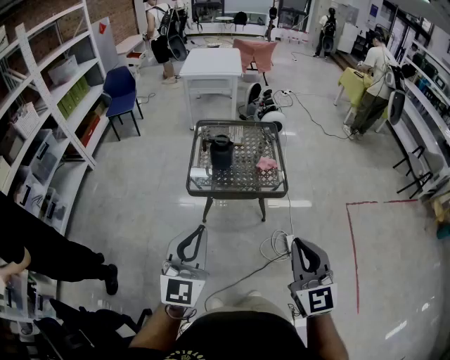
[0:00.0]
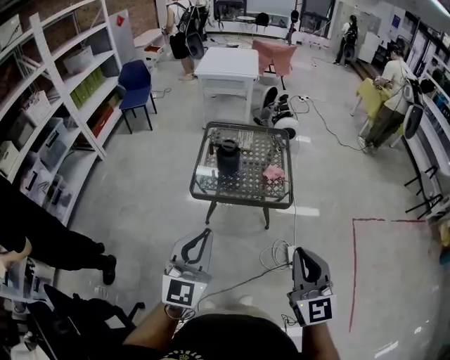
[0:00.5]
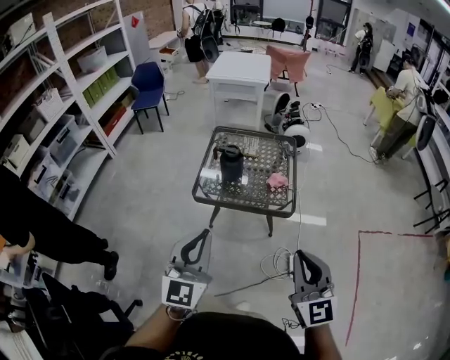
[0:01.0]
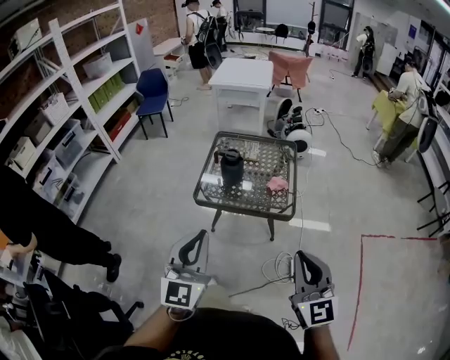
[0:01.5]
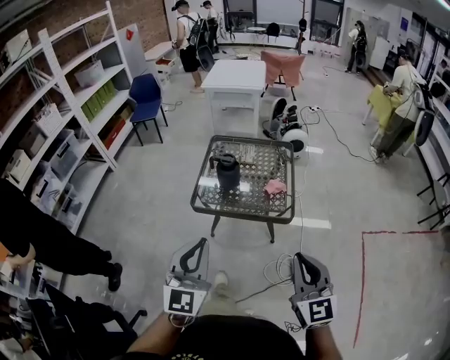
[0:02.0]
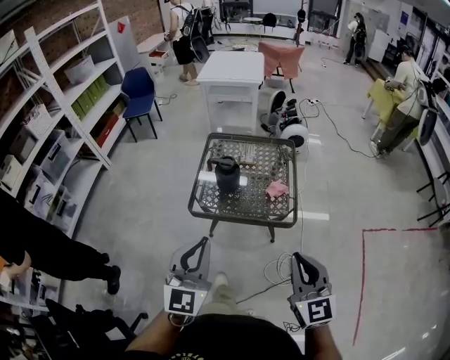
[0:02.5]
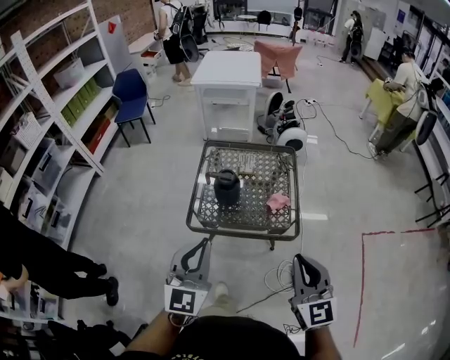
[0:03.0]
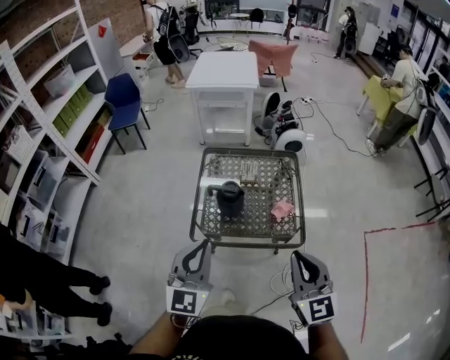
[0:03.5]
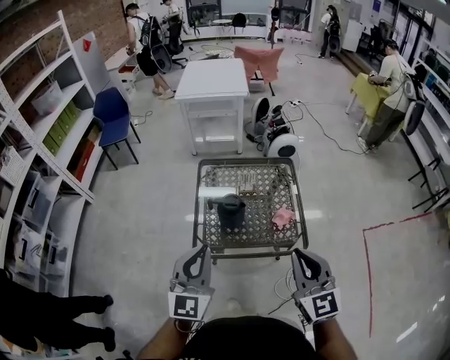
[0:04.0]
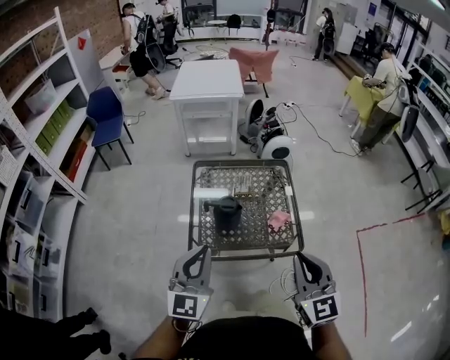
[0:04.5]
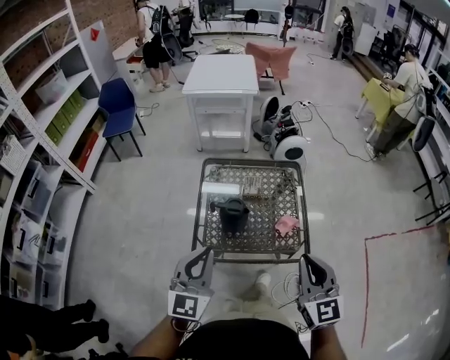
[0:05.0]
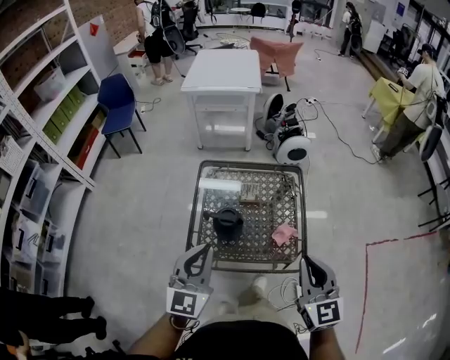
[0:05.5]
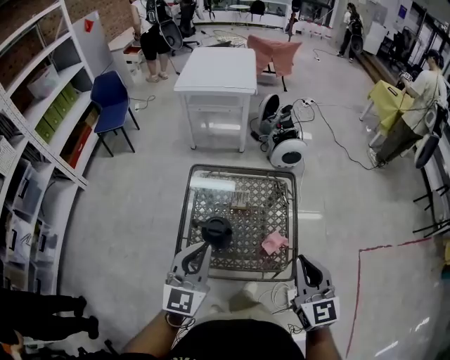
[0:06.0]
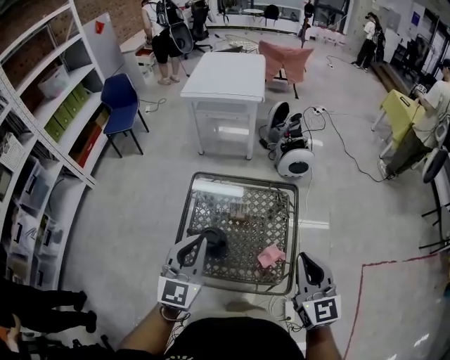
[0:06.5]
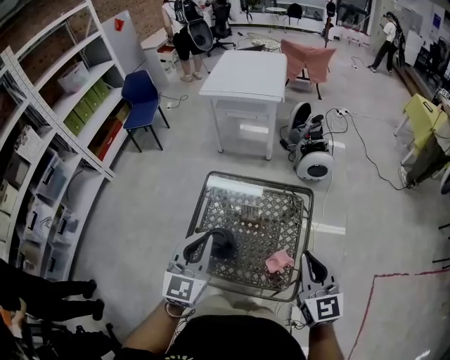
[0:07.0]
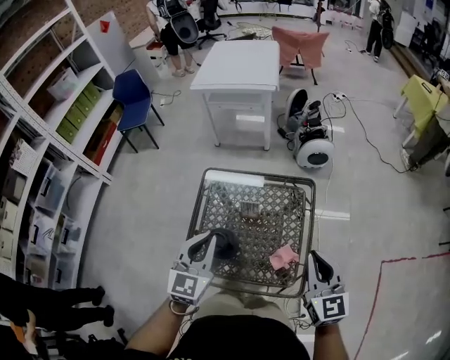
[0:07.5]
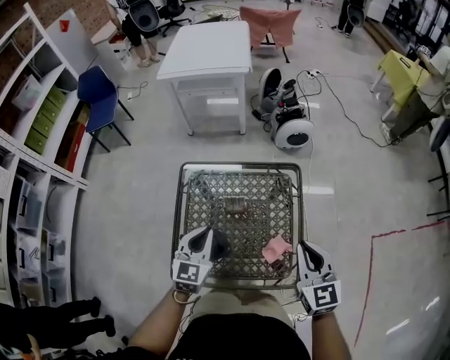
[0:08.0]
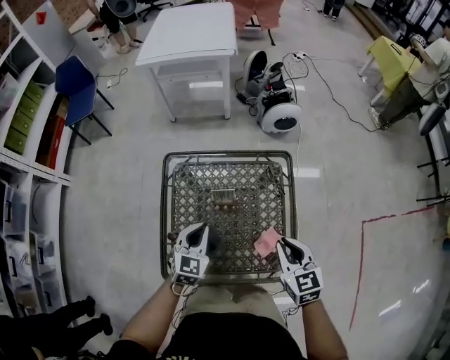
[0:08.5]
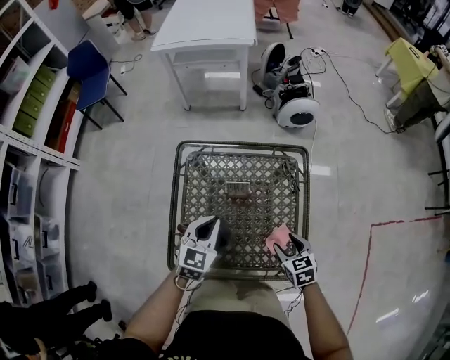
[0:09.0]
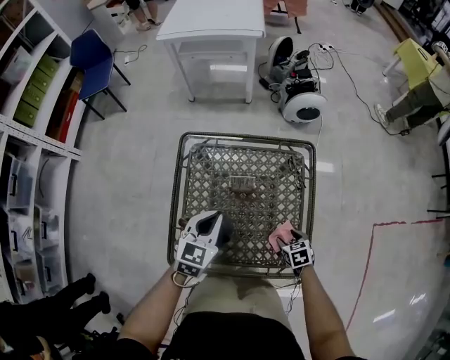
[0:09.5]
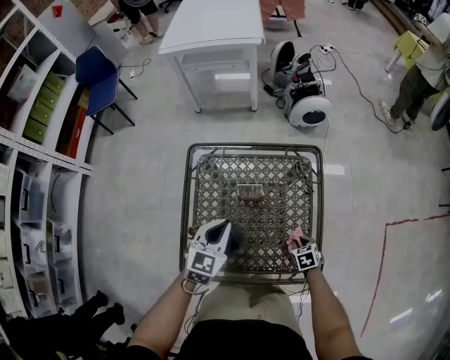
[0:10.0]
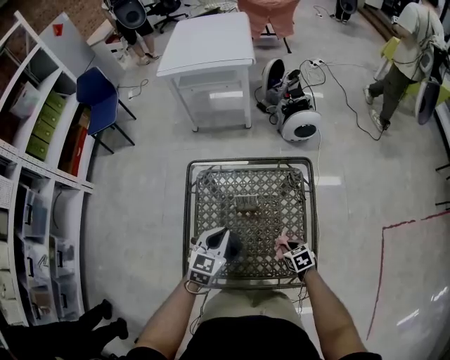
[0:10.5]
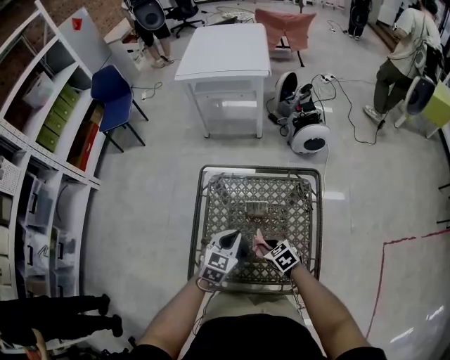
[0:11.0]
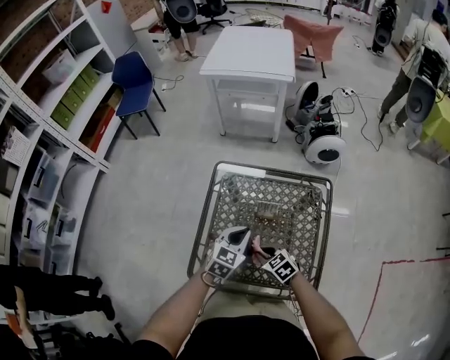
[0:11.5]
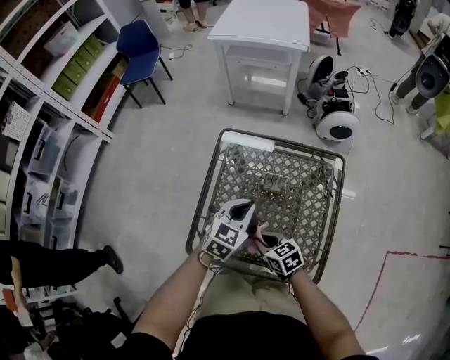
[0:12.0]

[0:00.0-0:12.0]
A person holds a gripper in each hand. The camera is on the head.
0:00.0 to 0:02.0: The grippers both shift to the right and forward by about 10 cm.
0:02.0 to 0:04.0: The left gripper moves forward, some 30 cm. The right gripper travels forward and to the left by some 30 cm.
0:04.0 to 0:06.0: The two grippers go roughly 20 cm forward and to the right.
0:06.0 to 0:08.0: The right gripper travels forward, downward and to the right by approximately 20 cm; the left gripper heads downward and forward, covering approximately 20 cm.
0:08.0 to 0:10.0: The right gripper shifts about 40 cm downward, tips its fingers downward by approximately 50 degrees, and opens and closes again, while the left gripper goes roughly 10 cm downward.
0:10.0 to 0:12.0: The right gripper moves to the left and upward, about 25 cm, and rotates about 40 degrees.

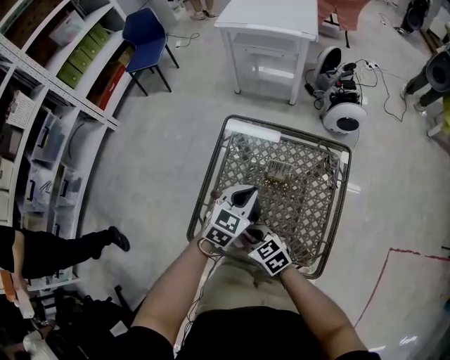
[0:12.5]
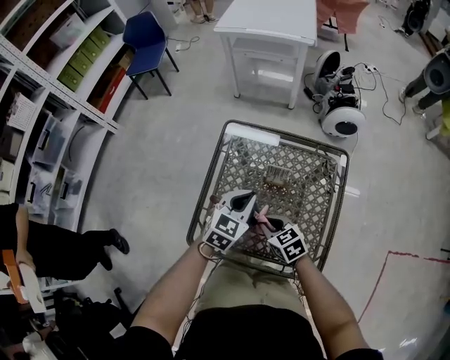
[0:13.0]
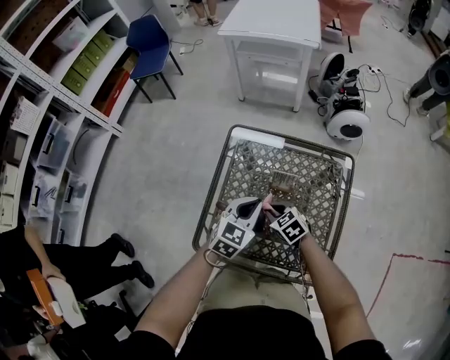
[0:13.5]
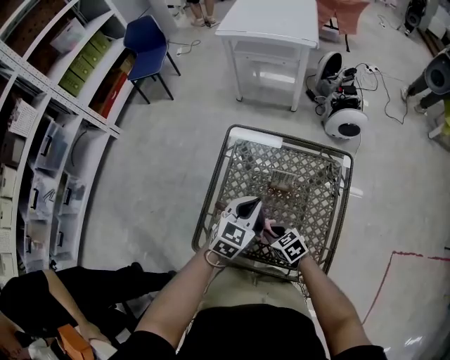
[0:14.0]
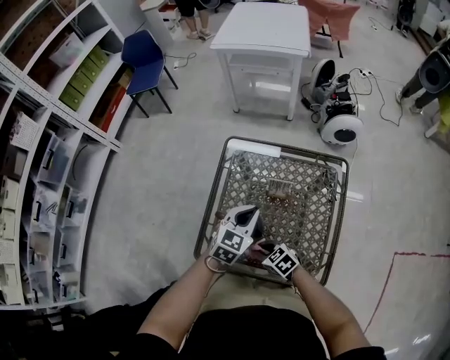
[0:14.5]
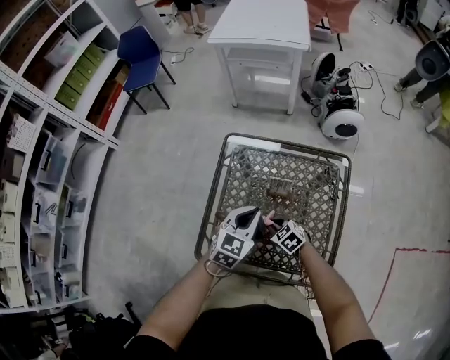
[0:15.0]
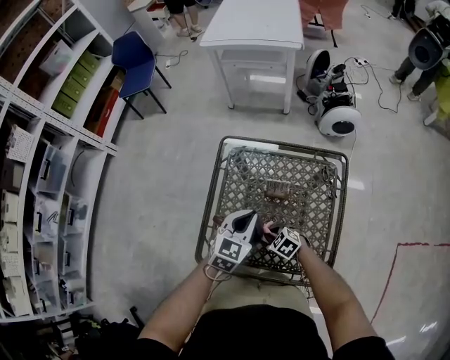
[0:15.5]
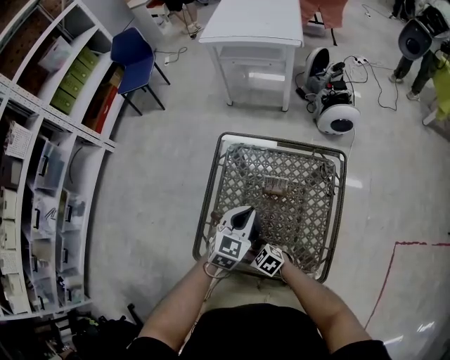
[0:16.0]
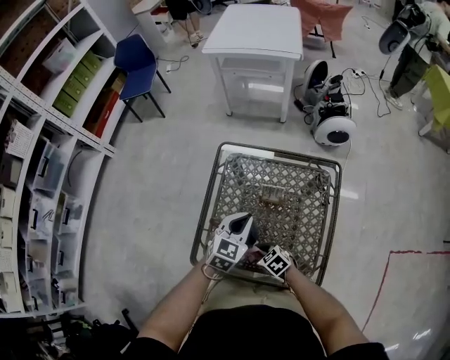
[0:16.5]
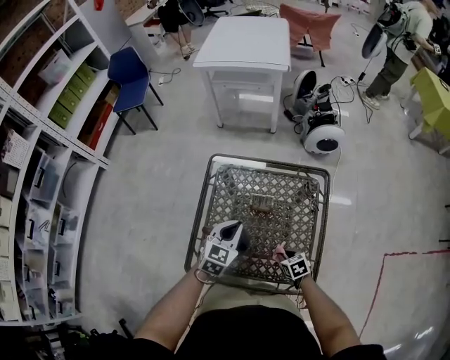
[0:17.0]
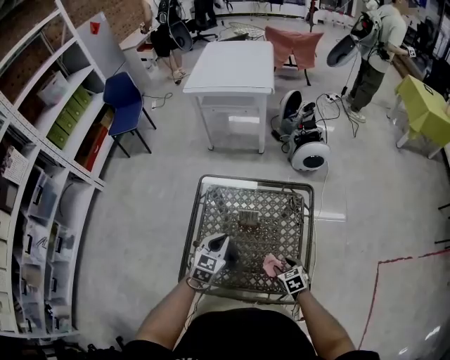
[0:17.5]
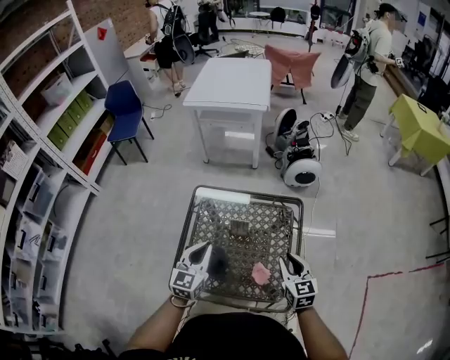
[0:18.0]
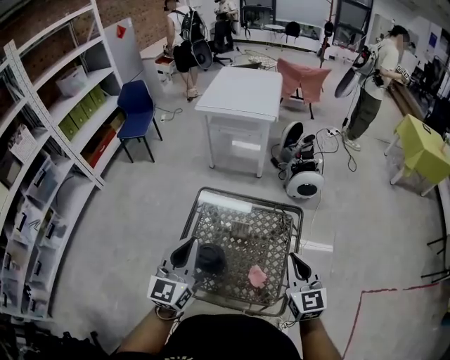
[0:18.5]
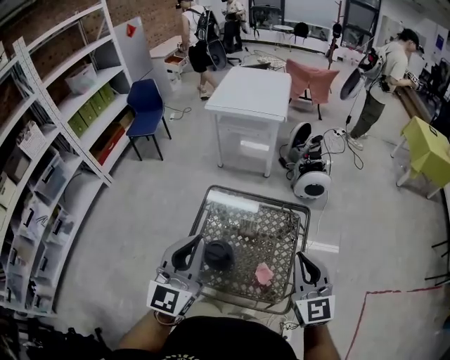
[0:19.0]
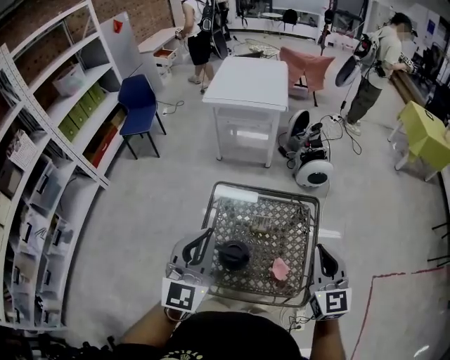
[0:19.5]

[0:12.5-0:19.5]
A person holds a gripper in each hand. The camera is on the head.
0:12.5 to 0:14.5: The right gripper travels downward by some 10 cm, and reaches approximately 10 cm forward, then returns.
0:14.5 to 0:16.0: The right gripper goes to the right and returns, roughly 5 cm each way.
0:16.0 to 0:17.5: The right gripper travels to the right by roughly 25 cm, rotates approximately 40 degrees, and opens its fingers.
0:17.5 to 0:19.5: The grippers both shift upward by some 35 cm. The left gripper angles its fingers upward, by some 30 degrees, while the right gripper angles its fingers upward, by approximately 50 degrees, and closes up.

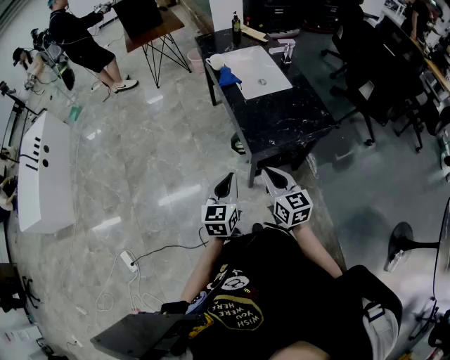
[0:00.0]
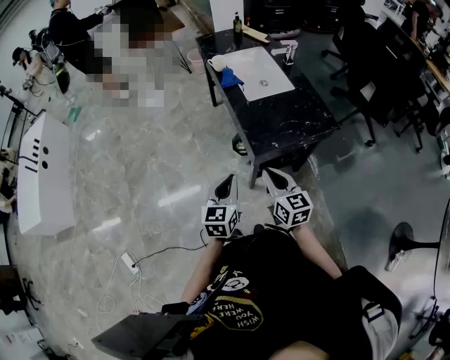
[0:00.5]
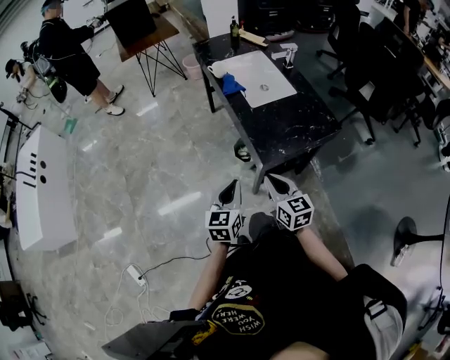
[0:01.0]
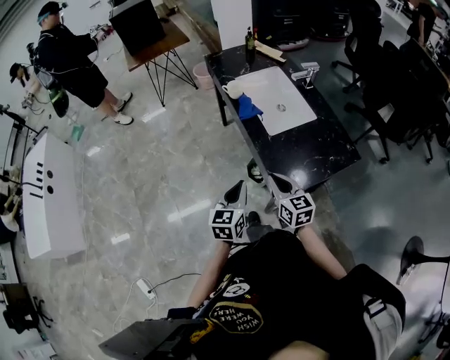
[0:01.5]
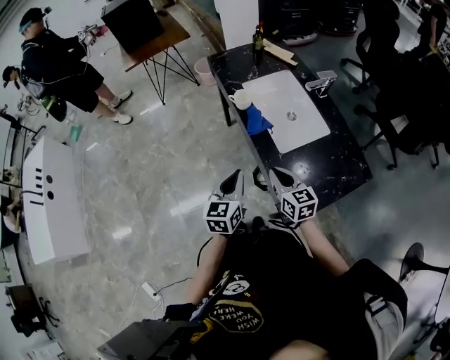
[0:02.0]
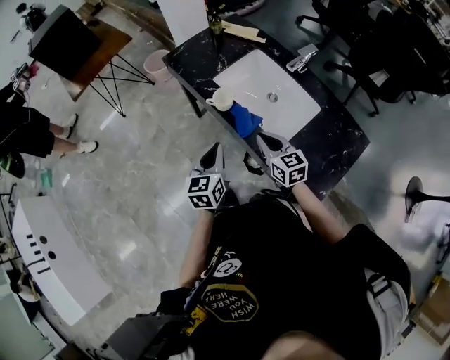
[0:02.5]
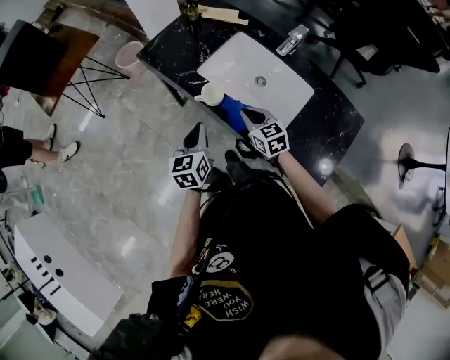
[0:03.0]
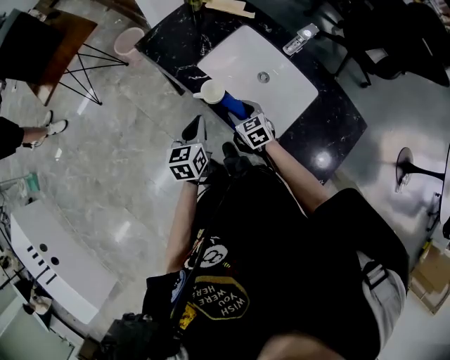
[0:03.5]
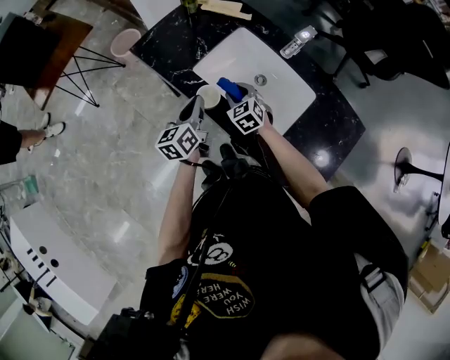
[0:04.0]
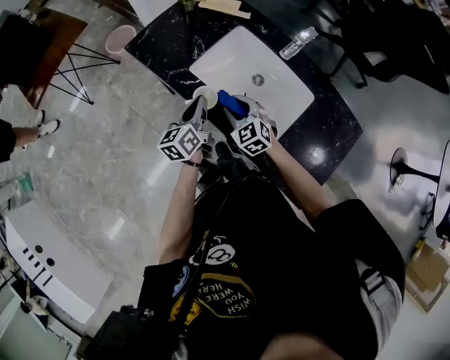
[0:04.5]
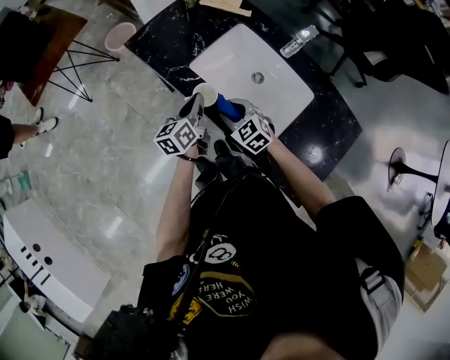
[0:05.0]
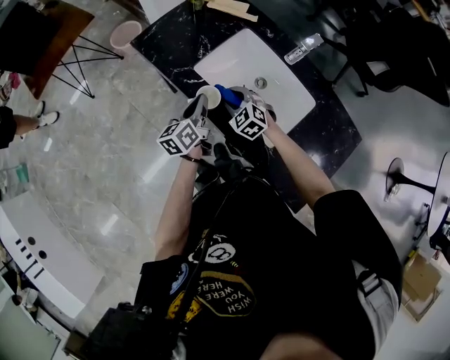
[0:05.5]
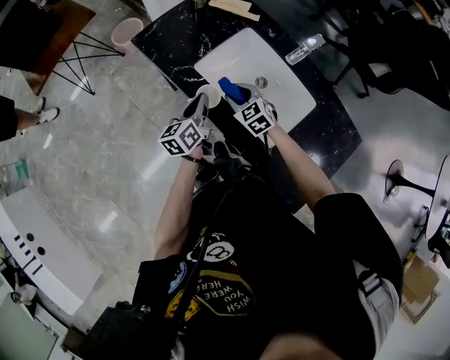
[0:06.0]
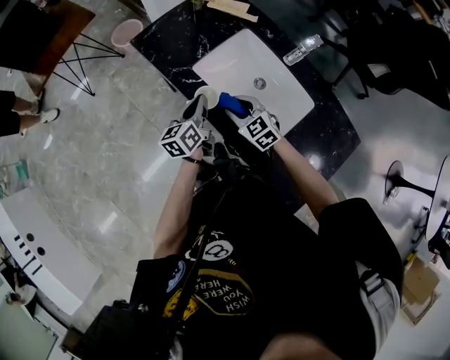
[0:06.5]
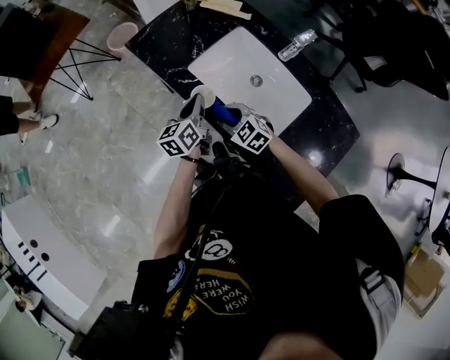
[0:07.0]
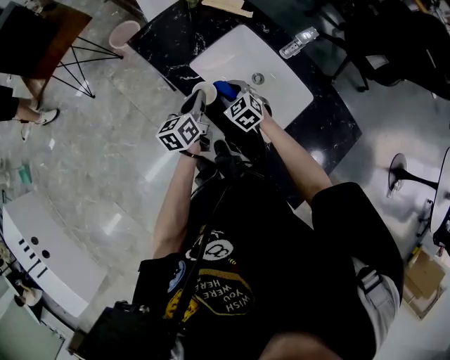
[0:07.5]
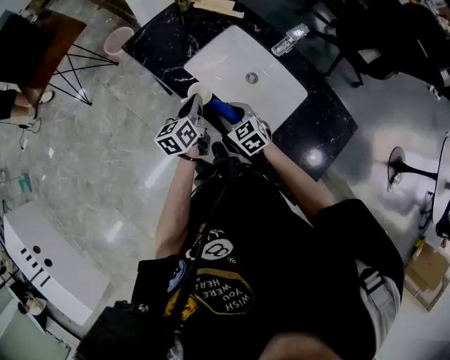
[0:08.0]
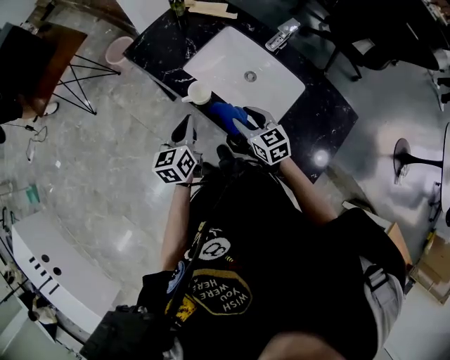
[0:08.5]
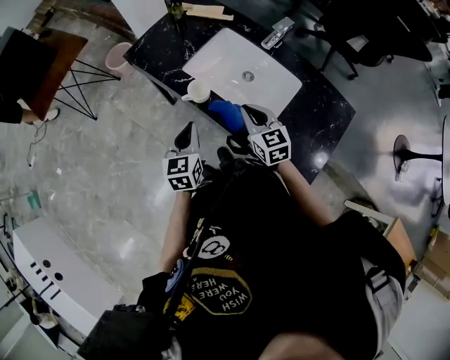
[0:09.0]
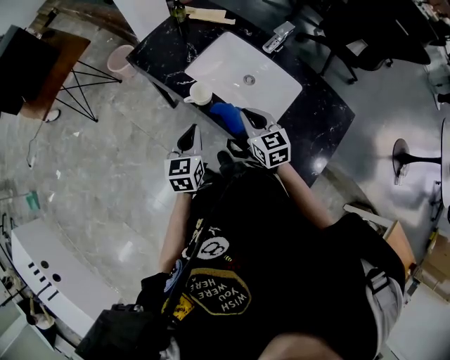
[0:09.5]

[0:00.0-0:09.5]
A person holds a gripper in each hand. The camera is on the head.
0:00.0 to 0:02.0: The grippers both shift forward by approximately 35 cm.
0:02.0 to 0:04.0: The left gripper changes place by about 40 cm, and turns by approximately 30 degrees. The right gripper shifts by about 40 cm, changes its angle by approximately 40 degrees, and opens.
0:04.0 to 0:05.5: The right gripper changes its angle by approximately 20 degrees.
0:05.5 to 0:07.5: The right gripper moves roughly 5 cm backward and comes back.
0:07.5 to 0:09.5: The right gripper shifts about 20 cm backward and upward, rotates approximately 40 degrees, and closes up; the left gripper moves backward, some 15 cm, and rotates about 30 degrees.
